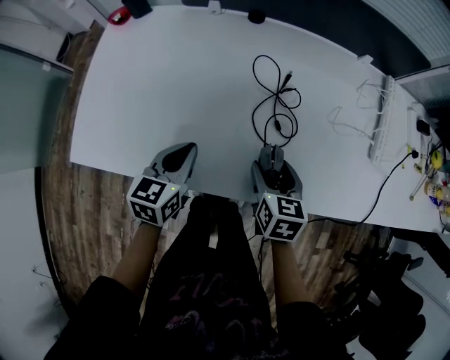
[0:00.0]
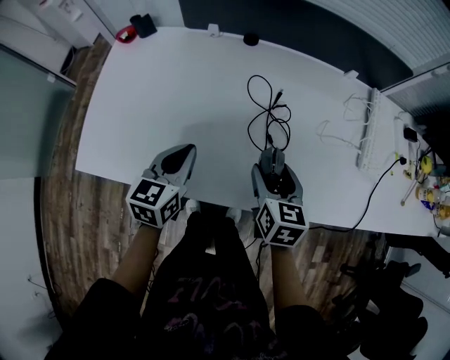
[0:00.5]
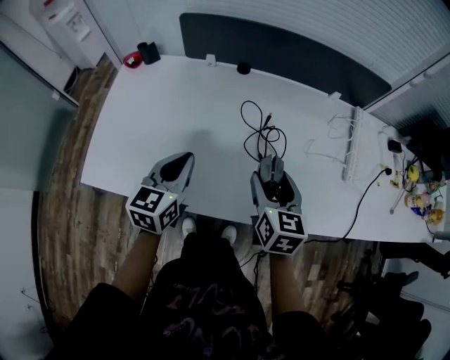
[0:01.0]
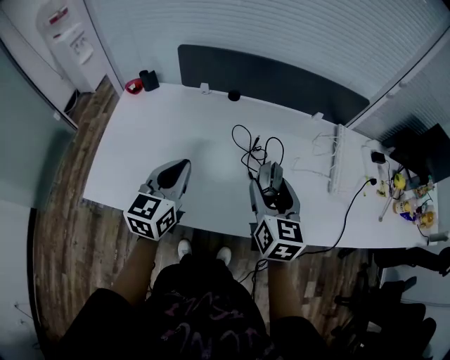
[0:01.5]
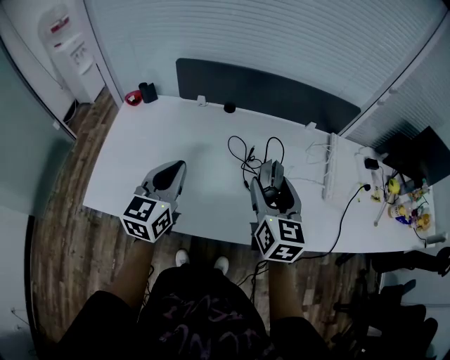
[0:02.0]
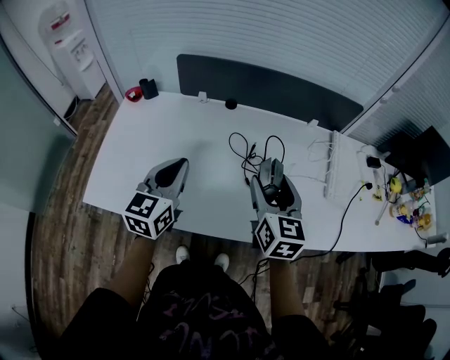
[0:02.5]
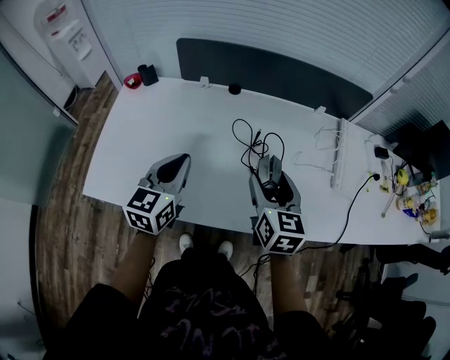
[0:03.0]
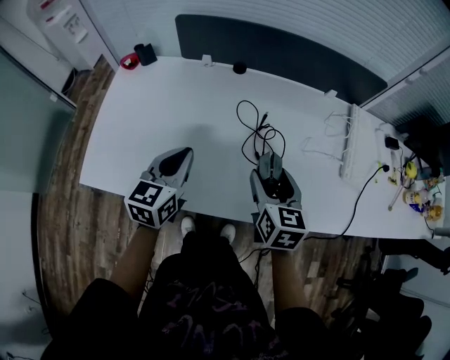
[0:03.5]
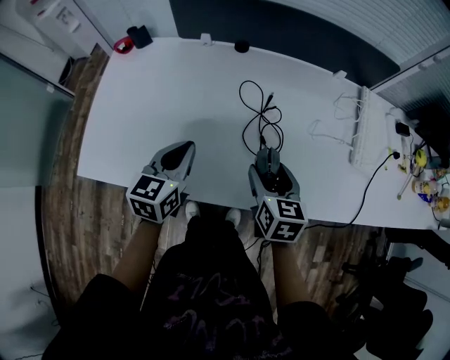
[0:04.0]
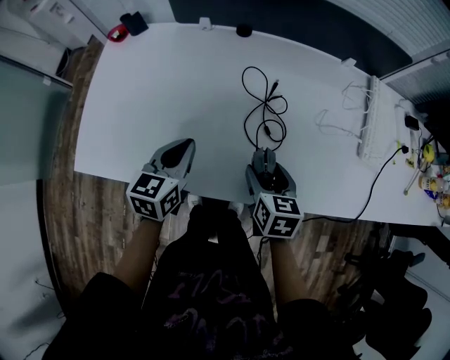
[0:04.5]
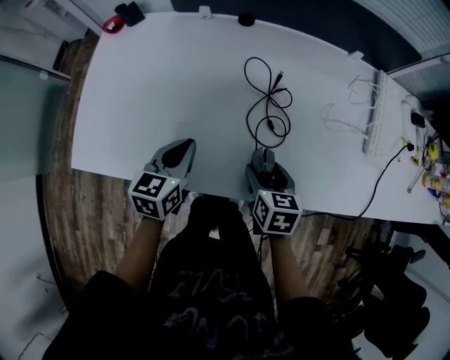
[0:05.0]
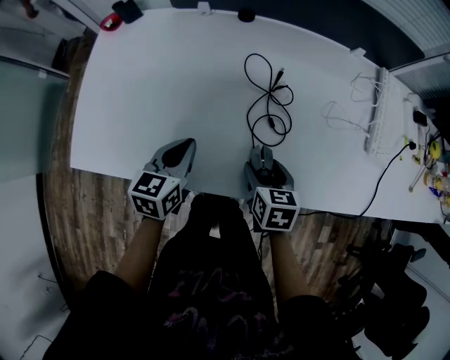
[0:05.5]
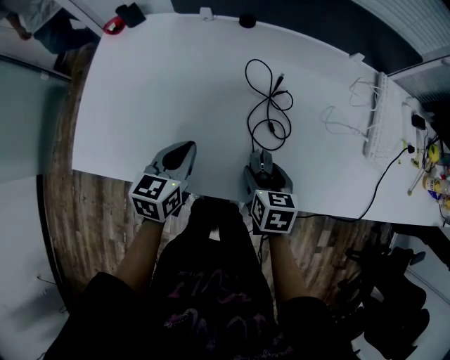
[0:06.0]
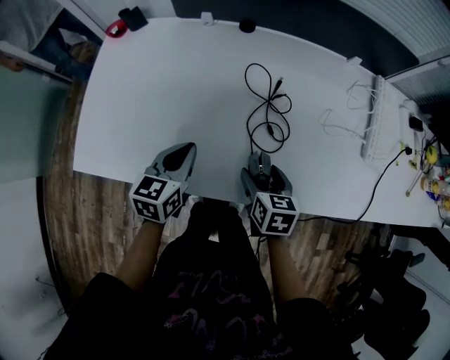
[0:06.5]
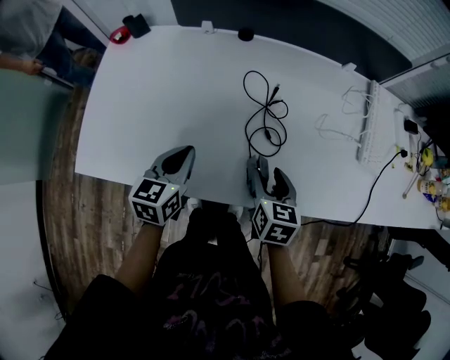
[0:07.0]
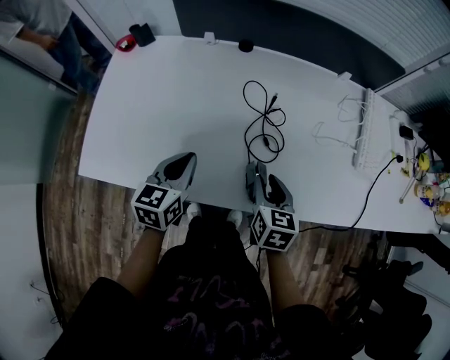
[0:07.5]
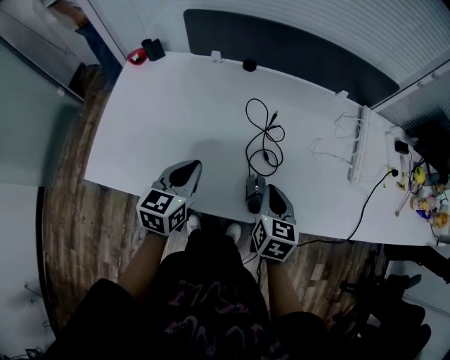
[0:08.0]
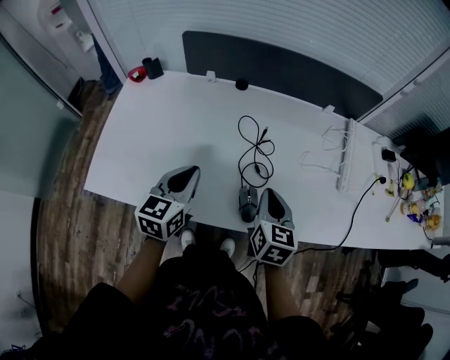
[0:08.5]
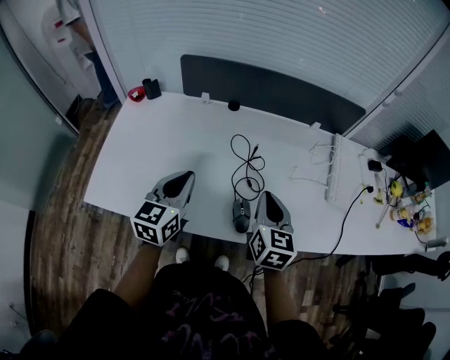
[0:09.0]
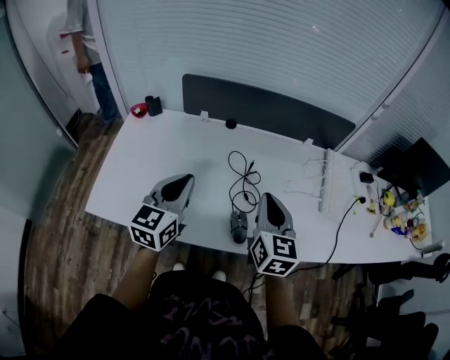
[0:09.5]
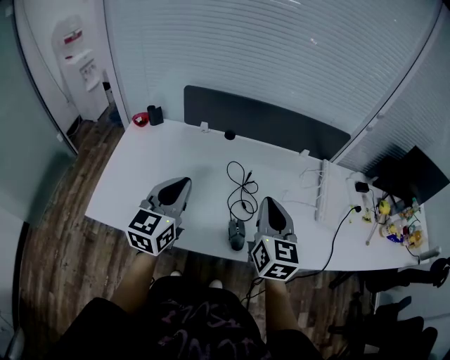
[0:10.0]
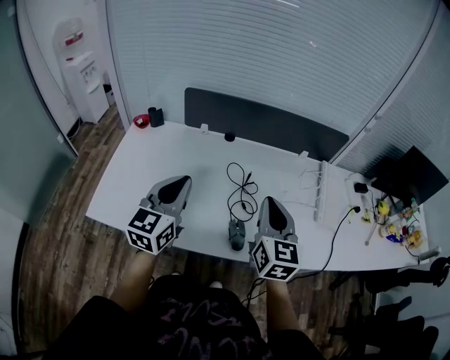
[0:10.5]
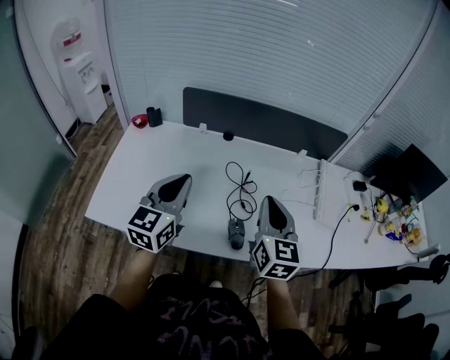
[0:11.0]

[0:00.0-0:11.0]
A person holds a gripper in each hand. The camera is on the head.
0:00.0 to 0:02.0: Both grippers travel together upward, about 20 cm. The left gripper turns by about 30 degrees. The right gripper turns by about 30 degrees.
0:02.0 to 0:03.5: The two grippers go approximately 10 cm downward.
0:03.5 to 0:05.5: Both grippers travel together downward, approximately 15 cm. The right gripper changes its angle by some 20 degrees.
0:05.5 to 0:07.5: The right gripper moves upward, approximately 5 cm, and closes up.
0:07.5 to 0:09.0: The grippers both shift upward by approximately 15 cm. The right gripper closes.
0:09.0 to 0:11.0: Both grippers travel together upward, roughly 10 cm.

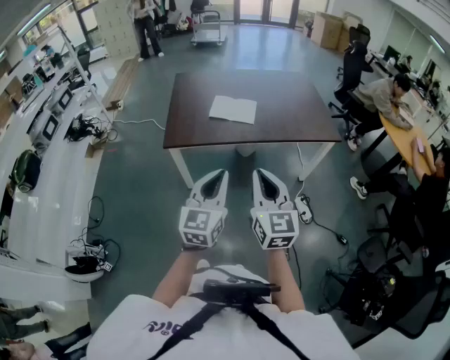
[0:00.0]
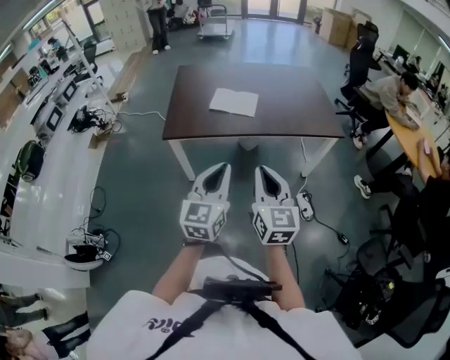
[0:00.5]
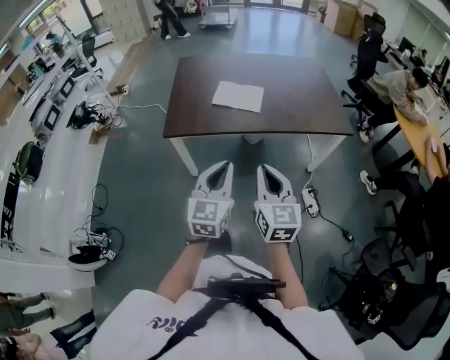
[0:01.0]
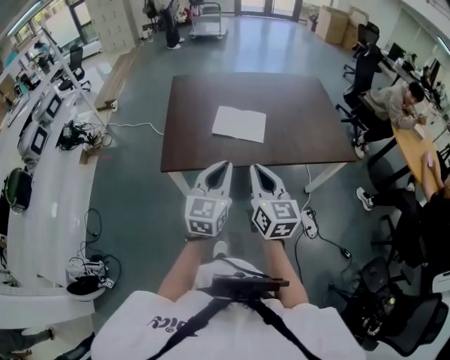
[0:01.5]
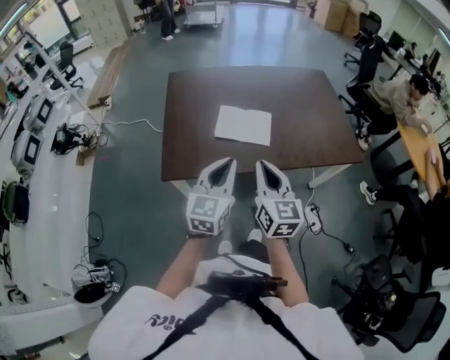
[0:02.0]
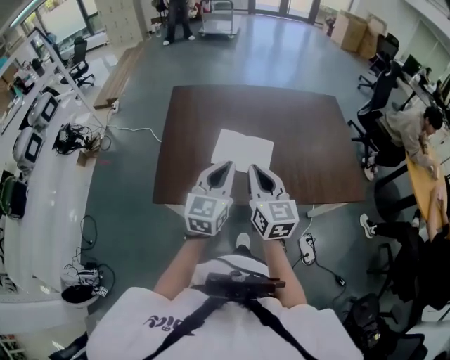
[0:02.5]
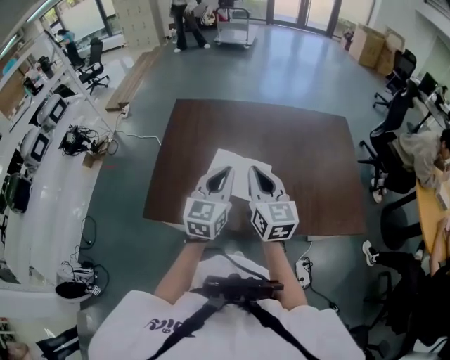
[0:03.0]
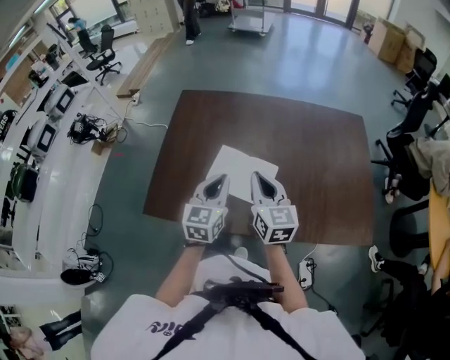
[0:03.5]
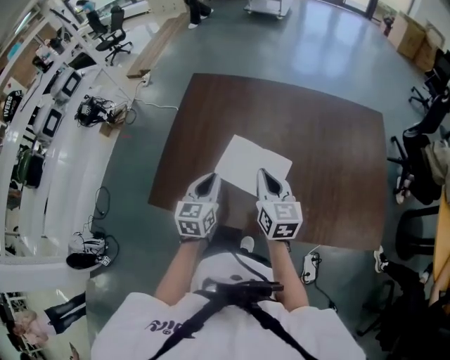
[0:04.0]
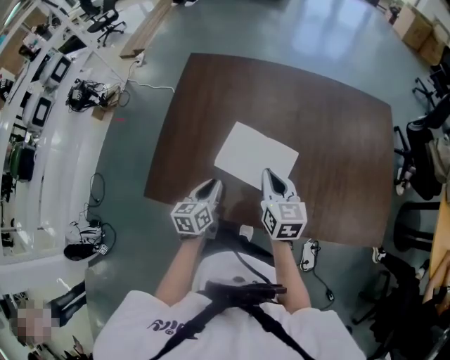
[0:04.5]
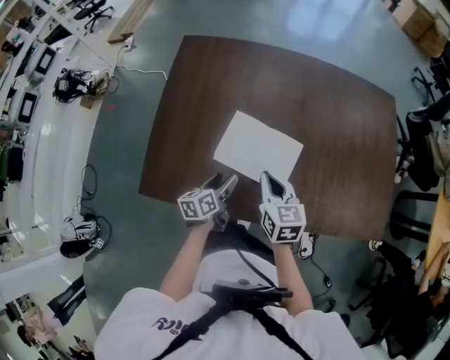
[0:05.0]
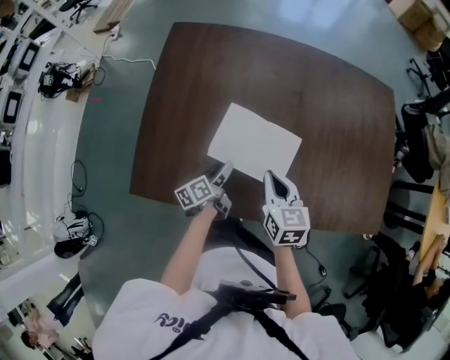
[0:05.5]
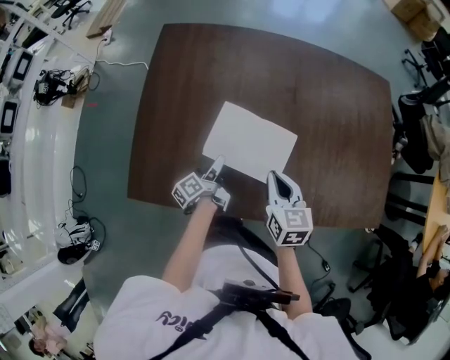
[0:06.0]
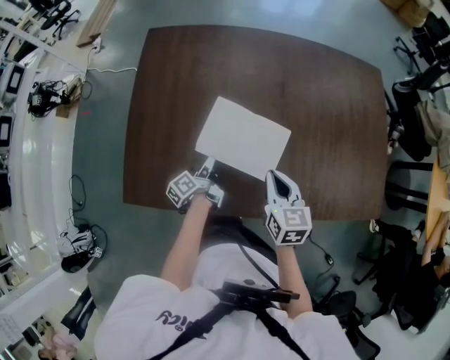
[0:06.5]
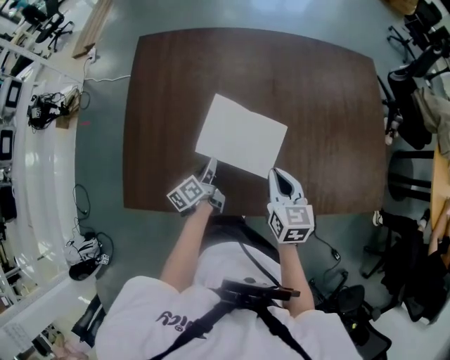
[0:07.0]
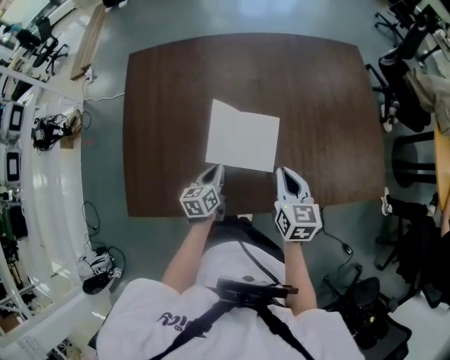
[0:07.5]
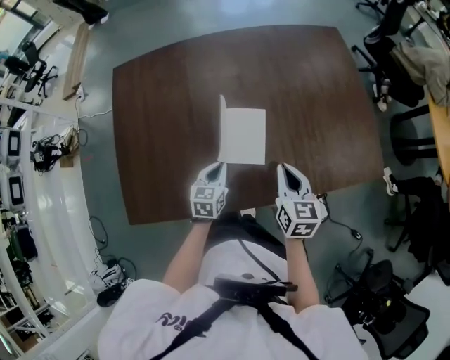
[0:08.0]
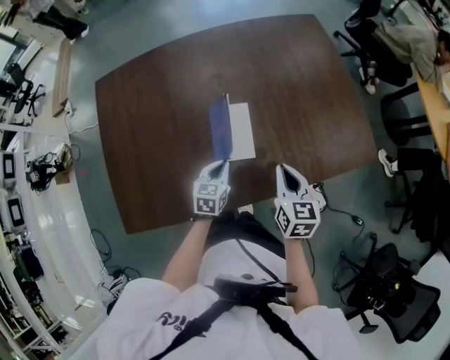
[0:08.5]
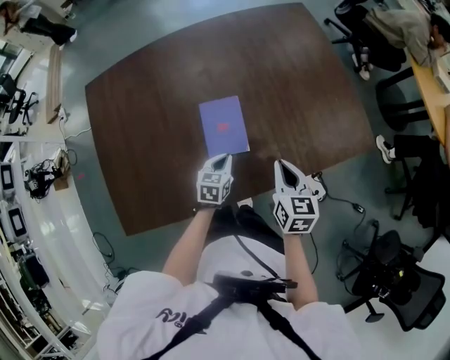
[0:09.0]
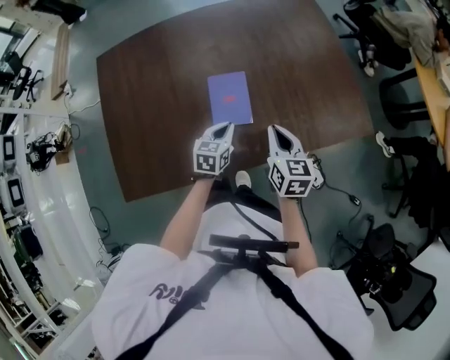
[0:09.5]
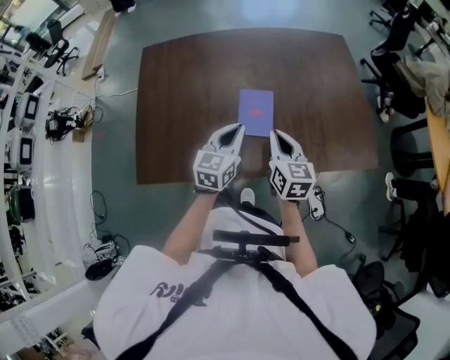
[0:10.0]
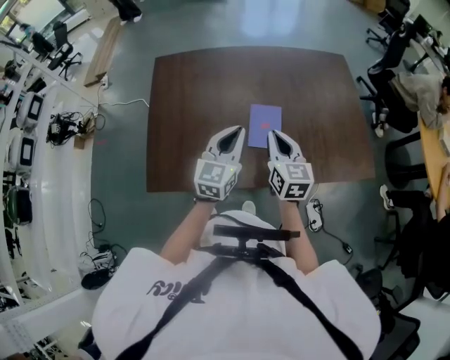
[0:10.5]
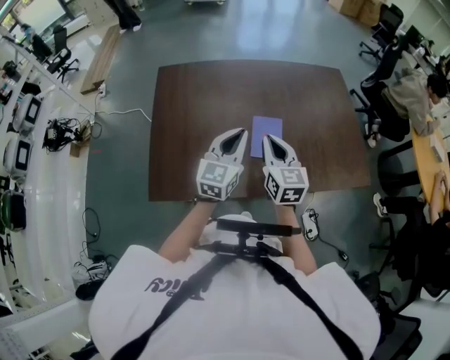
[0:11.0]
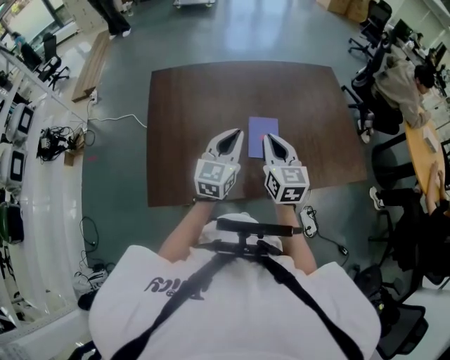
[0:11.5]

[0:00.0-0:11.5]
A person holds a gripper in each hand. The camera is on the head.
0:00.0 to 0:02.0: The grippers both shift forward by about 35 cm.
0:02.0 to 0:04.0: The left gripper moves forward and downward, approximately 30 cm, and swivels about 30 degrees; the right gripper shifts about 30 cm forward, and turns by approximately 20 degrees.
0:04.0 to 0:06.0: The right gripper goes about 15 cm downward, while the left gripper heads downward, covering about 25 cm, rotates around the line of its fingers by approximately 70 degrees, counterclockwise from behind, and opens up.
0:06.0 to 0:07.5: Both grippers travel together to the right, roughly 10 cm. The left gripper twists approximately 50 degrees clockwise, seen from behind, and closes up.
0:07.5 to 0:09.5: The right gripper moves to the right, roughly 10 cm. The left gripper heads to the right, covering some 15 cm, and rotates roughly 30 degrees.
0:09.5 to 0:11.5: The left gripper goes approximately 30 cm upward and to the left, and tips its fingers upward by approximately 30 degrees; the right gripper is displaced to the left and upward by approximately 25 cm.

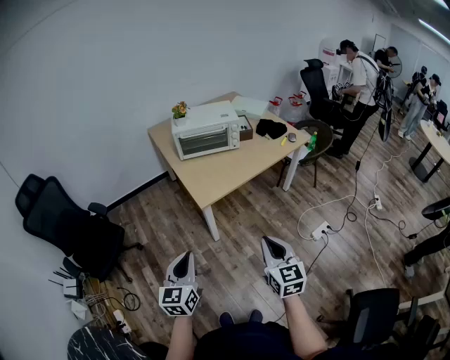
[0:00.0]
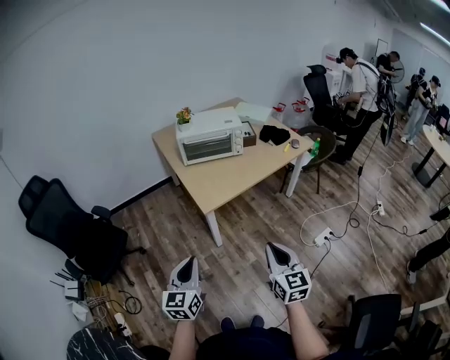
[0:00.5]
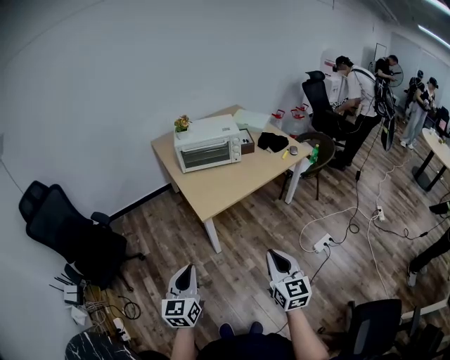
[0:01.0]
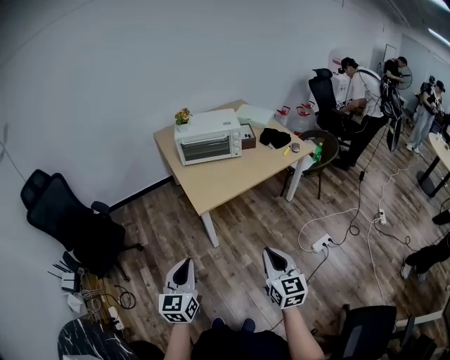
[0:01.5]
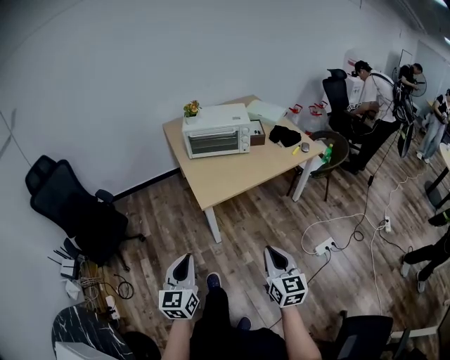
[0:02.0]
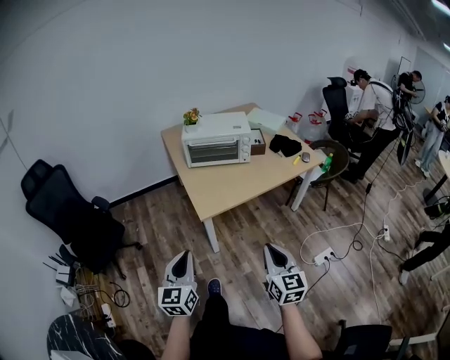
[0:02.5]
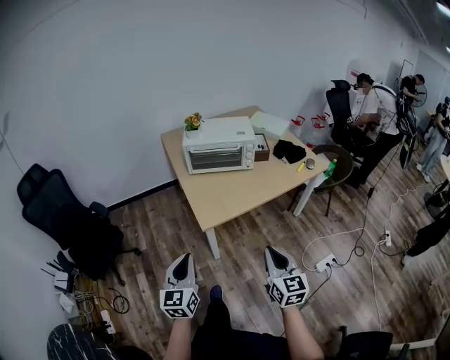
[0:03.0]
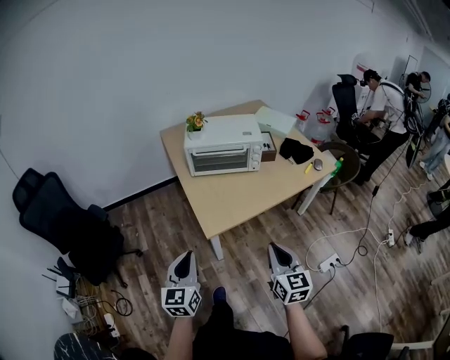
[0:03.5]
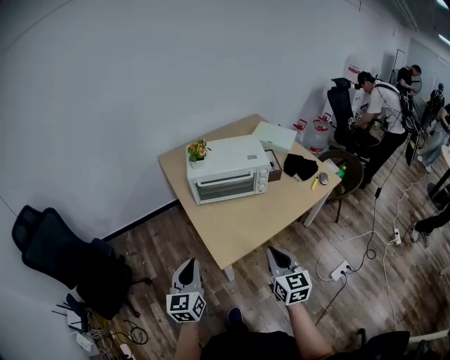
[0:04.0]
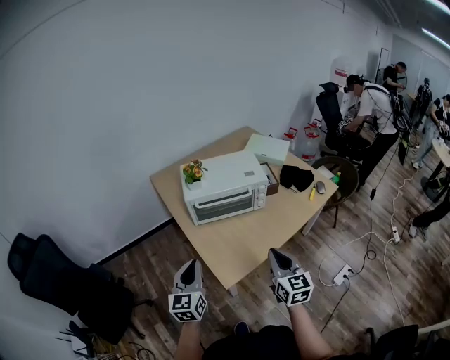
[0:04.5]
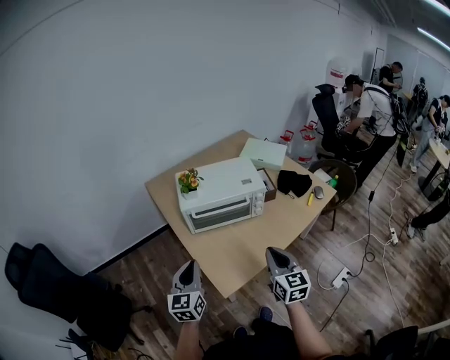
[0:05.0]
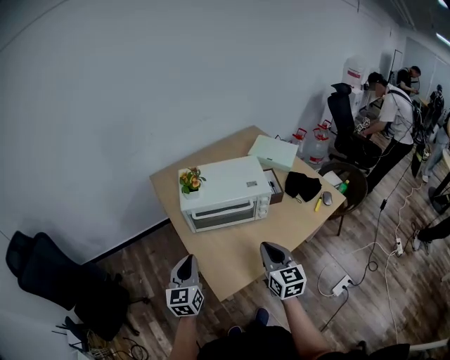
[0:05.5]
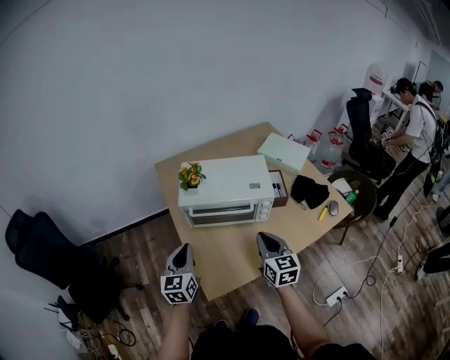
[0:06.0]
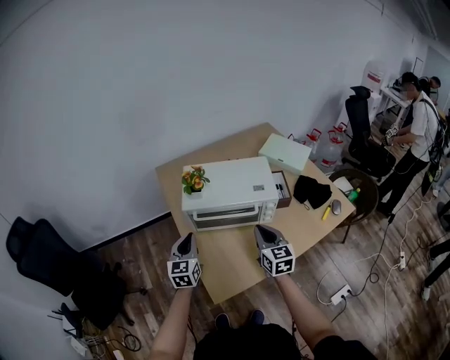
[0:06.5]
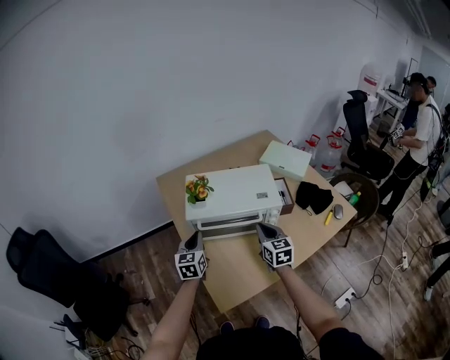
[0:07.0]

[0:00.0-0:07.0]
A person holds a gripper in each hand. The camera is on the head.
0:00.0 to 0:02.0: The two grippers go roughly 5 cm to the right.
0:02.0 to 0:03.5: Both grippers travel together forward, approximately 20 cm.
0:03.5 to 0:05.0: Both grippers travel together forward, about 25 cm.
0:05.0 to 0:07.0: The two grippers go about 25 cm forward.
